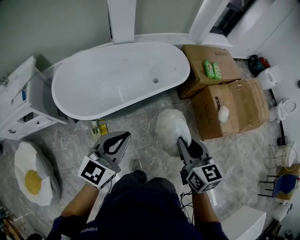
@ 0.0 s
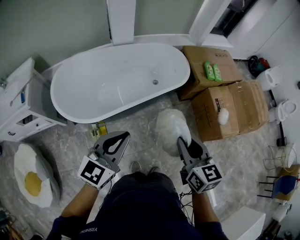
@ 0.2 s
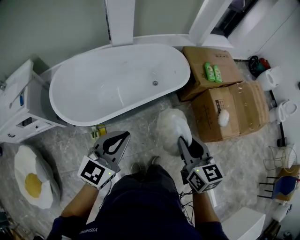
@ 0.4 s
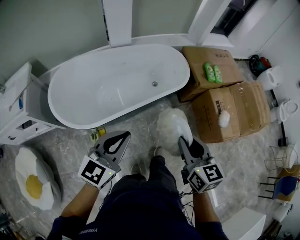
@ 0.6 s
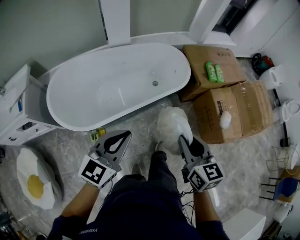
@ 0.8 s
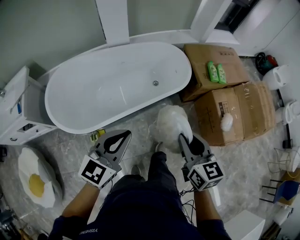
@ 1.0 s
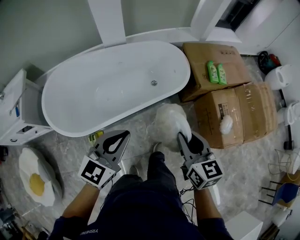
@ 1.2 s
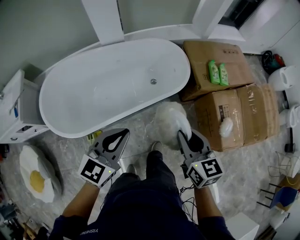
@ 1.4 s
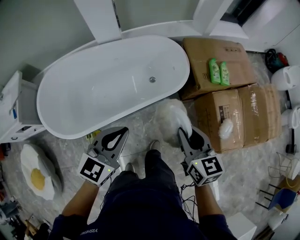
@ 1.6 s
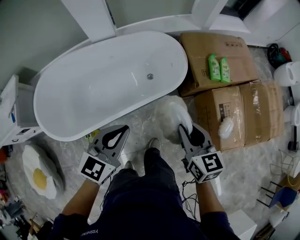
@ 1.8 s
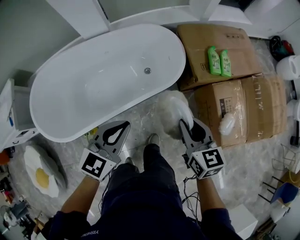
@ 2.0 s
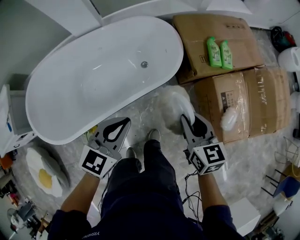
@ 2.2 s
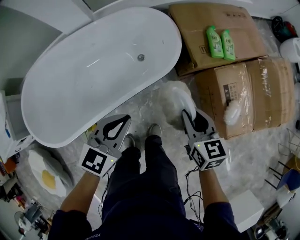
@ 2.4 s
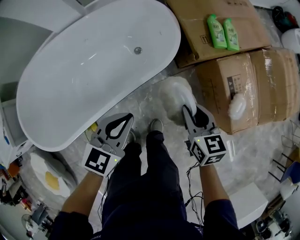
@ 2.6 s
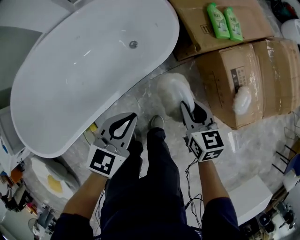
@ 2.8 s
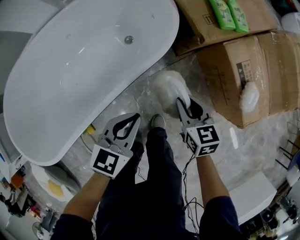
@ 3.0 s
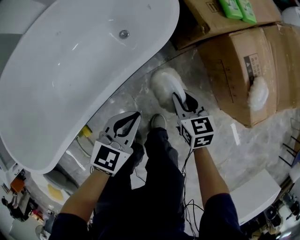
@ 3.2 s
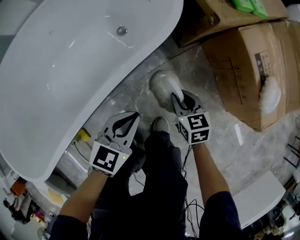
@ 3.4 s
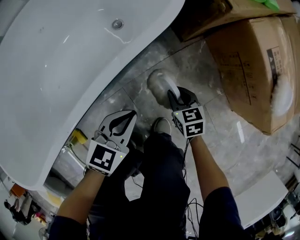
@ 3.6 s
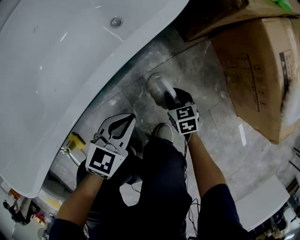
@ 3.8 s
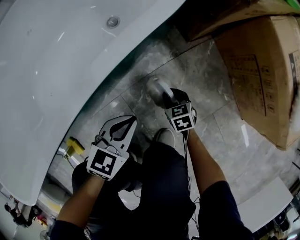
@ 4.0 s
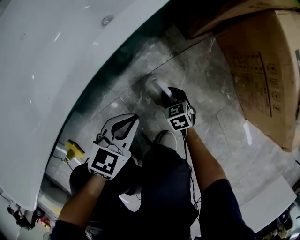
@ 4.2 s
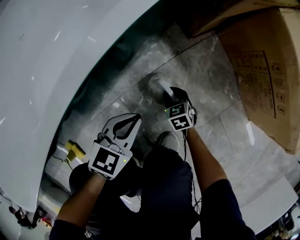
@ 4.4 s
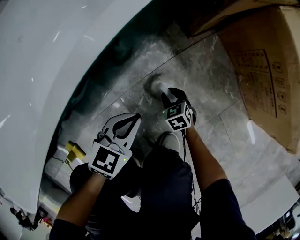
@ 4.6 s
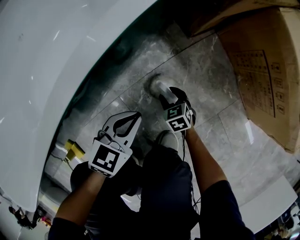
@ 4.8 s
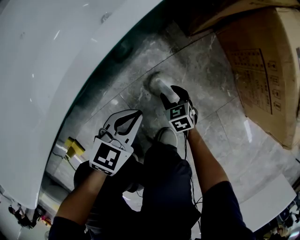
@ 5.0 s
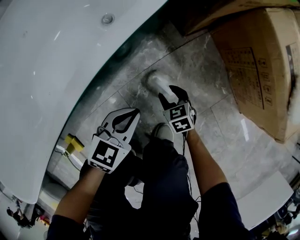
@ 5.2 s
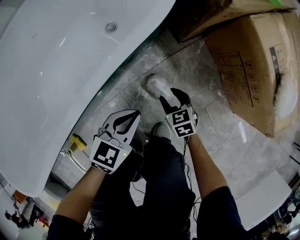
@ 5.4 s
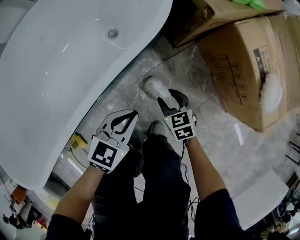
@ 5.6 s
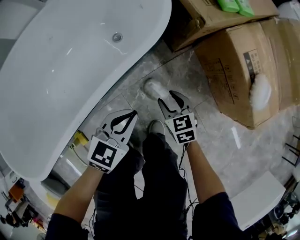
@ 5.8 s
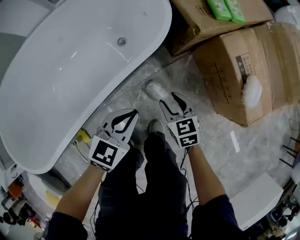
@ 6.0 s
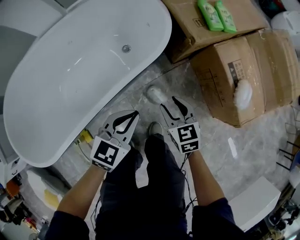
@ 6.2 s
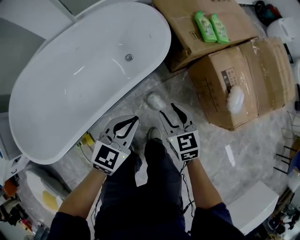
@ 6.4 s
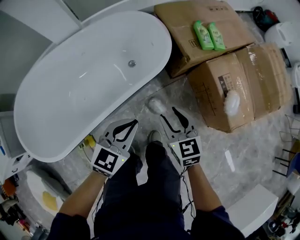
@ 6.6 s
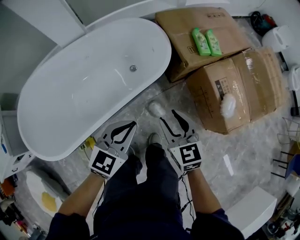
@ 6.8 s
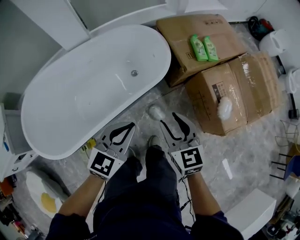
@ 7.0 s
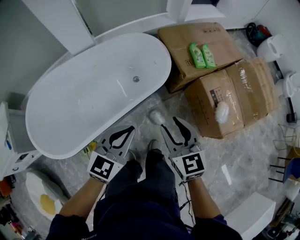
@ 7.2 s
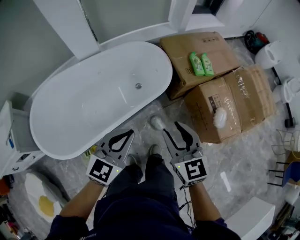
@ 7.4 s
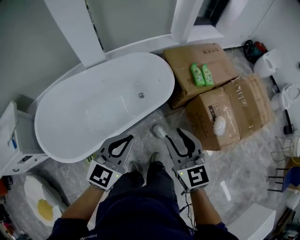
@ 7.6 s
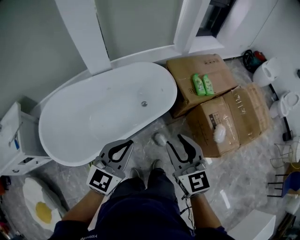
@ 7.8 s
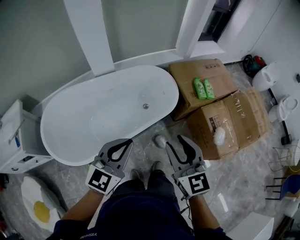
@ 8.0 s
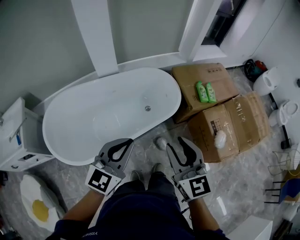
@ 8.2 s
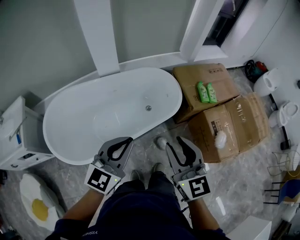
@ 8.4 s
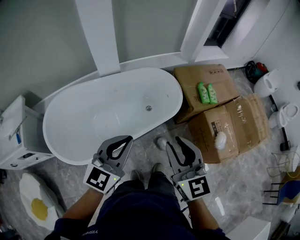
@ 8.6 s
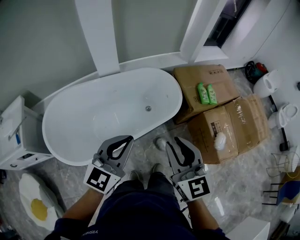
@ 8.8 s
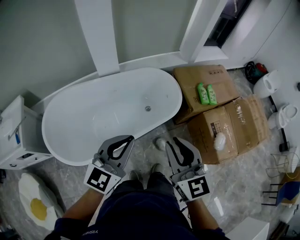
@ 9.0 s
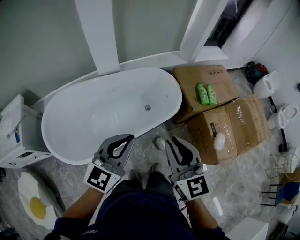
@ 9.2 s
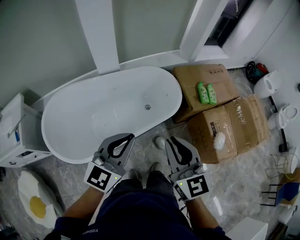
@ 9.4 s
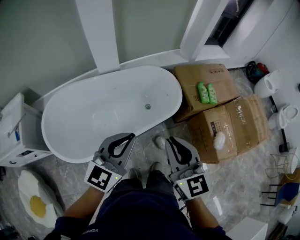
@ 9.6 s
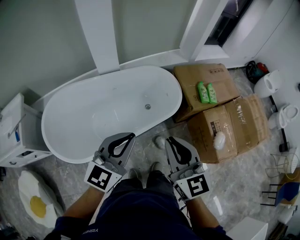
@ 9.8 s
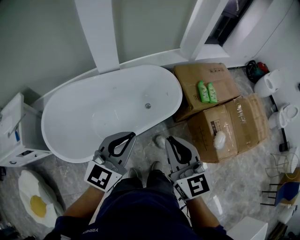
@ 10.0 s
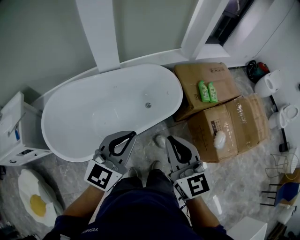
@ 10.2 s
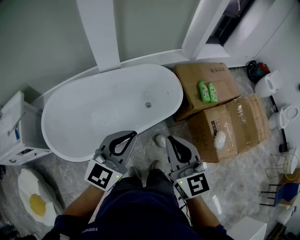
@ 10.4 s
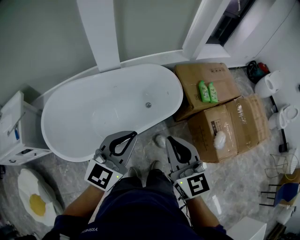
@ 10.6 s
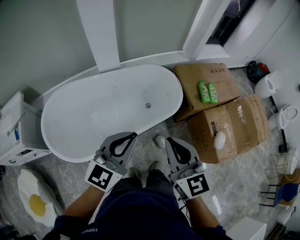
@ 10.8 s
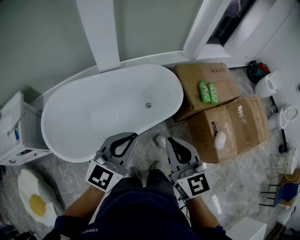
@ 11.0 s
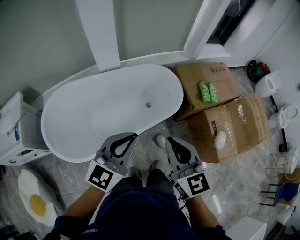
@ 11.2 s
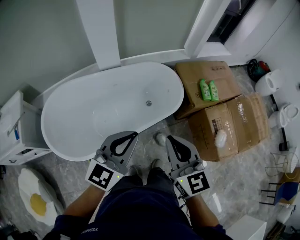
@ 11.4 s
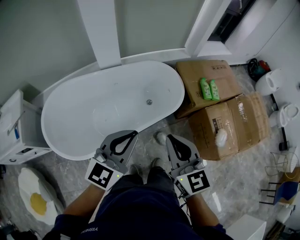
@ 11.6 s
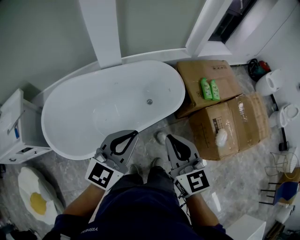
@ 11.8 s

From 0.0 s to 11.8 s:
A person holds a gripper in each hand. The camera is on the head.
From 0.0 s to 1.4 s: The left gripper goes roughly 25 cm forward and to the right. Meanwhile the right gripper moves forward, some 25 cm.
From 1.4 s to 3.0 s: The right gripper heads downward, covering approximately 35 cm; the left gripper moves downward, forward and to the right, approximately 35 cm, and changes its angle by some 20 degrees.
From 3.0 s to 4.4 s: The two grippers go about 40 cm downward.
From 4.4 s to 6.0 s: Both grippers travel together upward, roughly 35 cm. The right gripper opens up.
From 6.0 s to 7.4 s: The grippers both shift upward by roughly 40 cm. The right gripper swivels about 30 degrees. Meanwhile the left gripper changes its angle by about 20 degrees.
From 7.4 s to 8.8 s: Both grippers travel together upward and to the left, approximately 15 cm.
From 8.8 s to 10.4 s: The right gripper closes.
From 10.4 s to 11.8 s: The grippers move only a little.

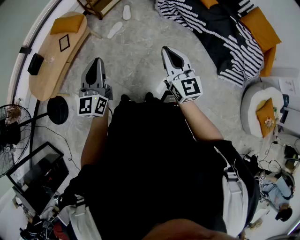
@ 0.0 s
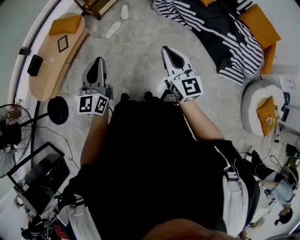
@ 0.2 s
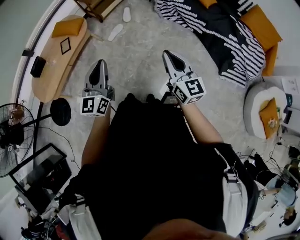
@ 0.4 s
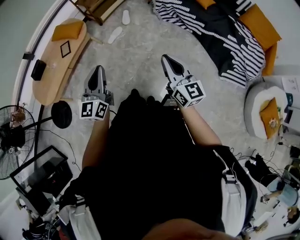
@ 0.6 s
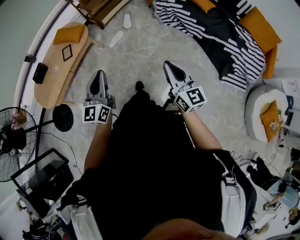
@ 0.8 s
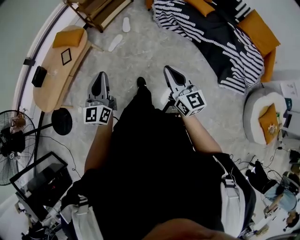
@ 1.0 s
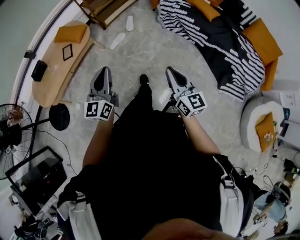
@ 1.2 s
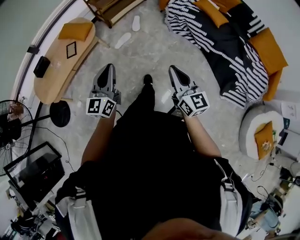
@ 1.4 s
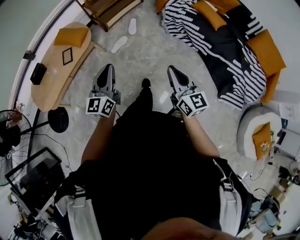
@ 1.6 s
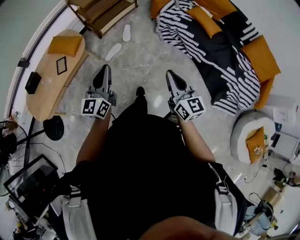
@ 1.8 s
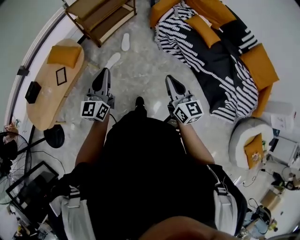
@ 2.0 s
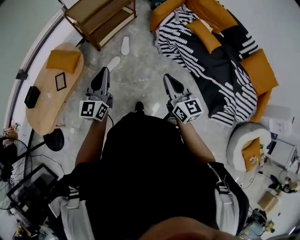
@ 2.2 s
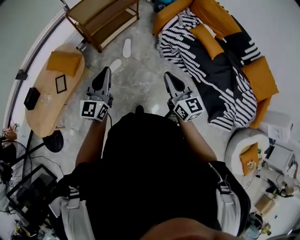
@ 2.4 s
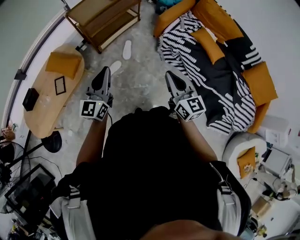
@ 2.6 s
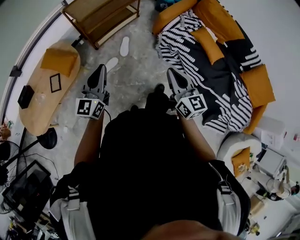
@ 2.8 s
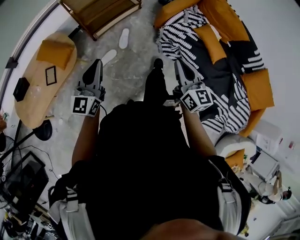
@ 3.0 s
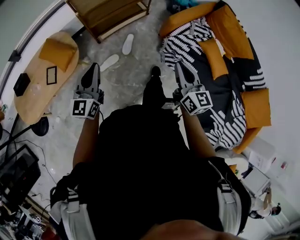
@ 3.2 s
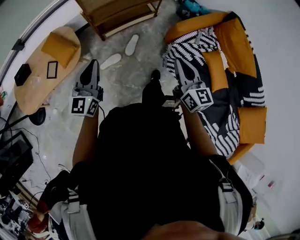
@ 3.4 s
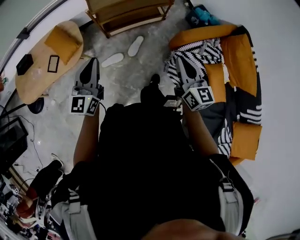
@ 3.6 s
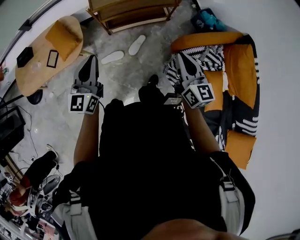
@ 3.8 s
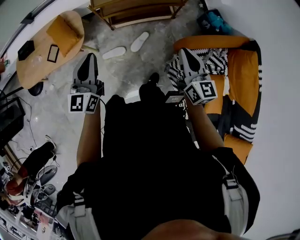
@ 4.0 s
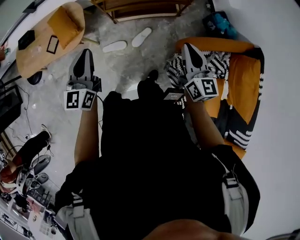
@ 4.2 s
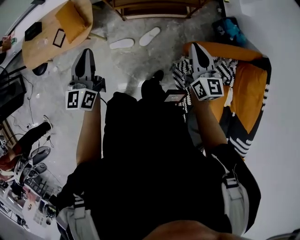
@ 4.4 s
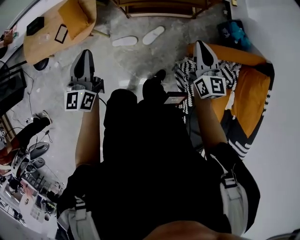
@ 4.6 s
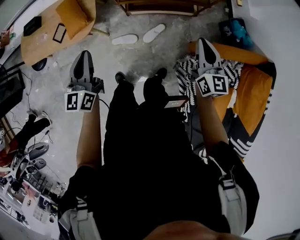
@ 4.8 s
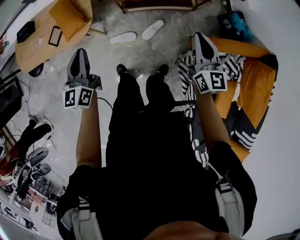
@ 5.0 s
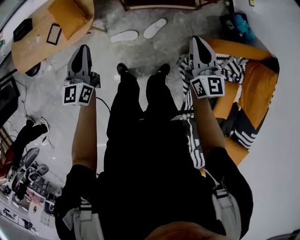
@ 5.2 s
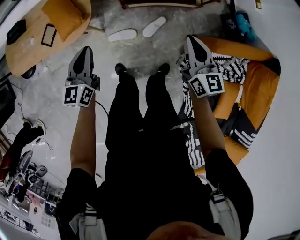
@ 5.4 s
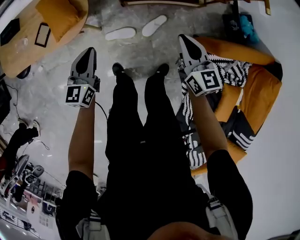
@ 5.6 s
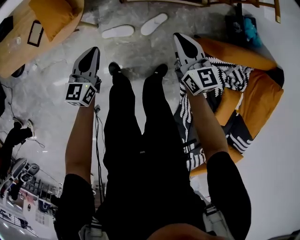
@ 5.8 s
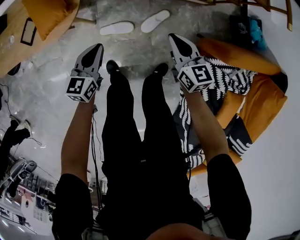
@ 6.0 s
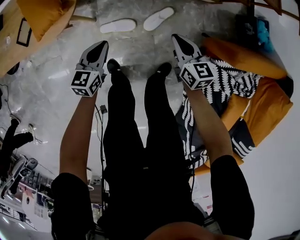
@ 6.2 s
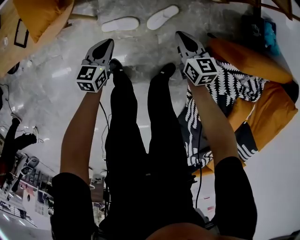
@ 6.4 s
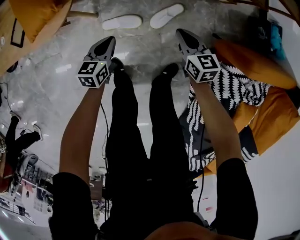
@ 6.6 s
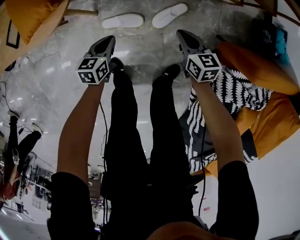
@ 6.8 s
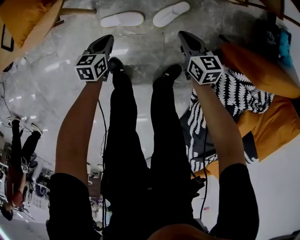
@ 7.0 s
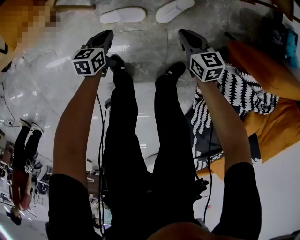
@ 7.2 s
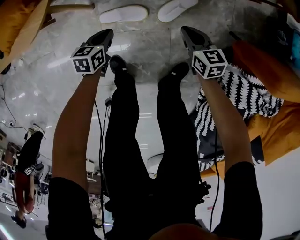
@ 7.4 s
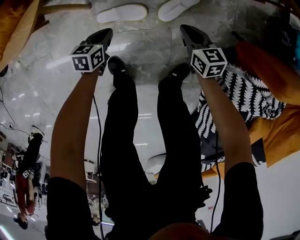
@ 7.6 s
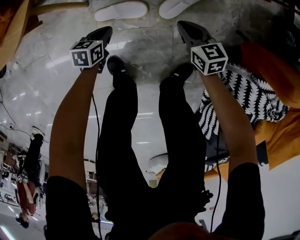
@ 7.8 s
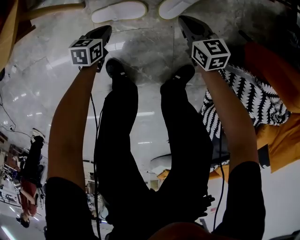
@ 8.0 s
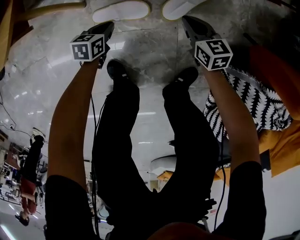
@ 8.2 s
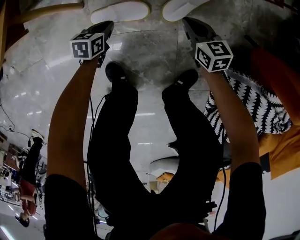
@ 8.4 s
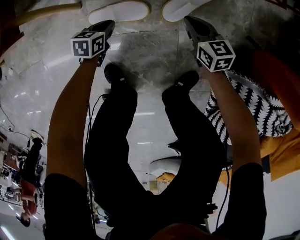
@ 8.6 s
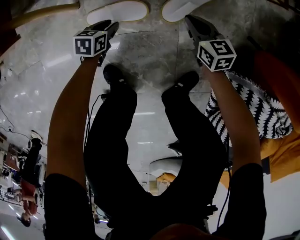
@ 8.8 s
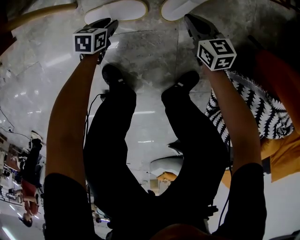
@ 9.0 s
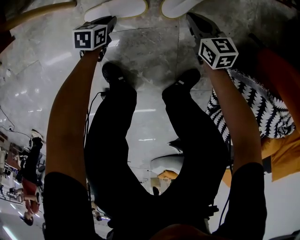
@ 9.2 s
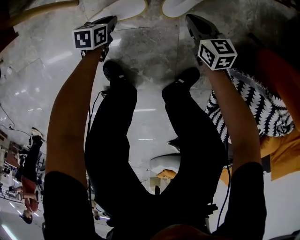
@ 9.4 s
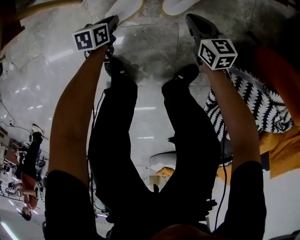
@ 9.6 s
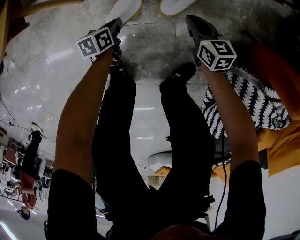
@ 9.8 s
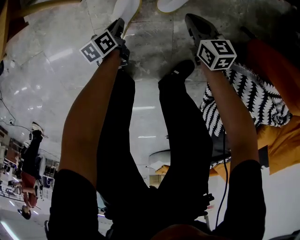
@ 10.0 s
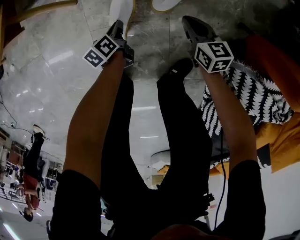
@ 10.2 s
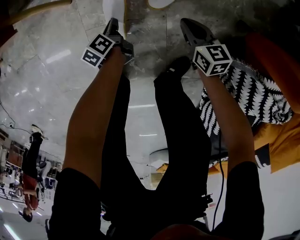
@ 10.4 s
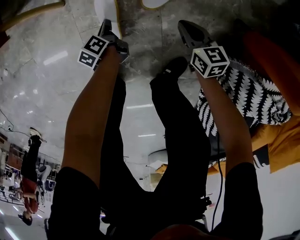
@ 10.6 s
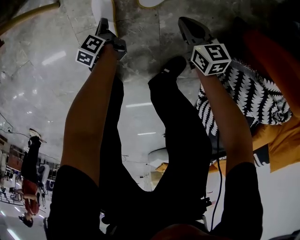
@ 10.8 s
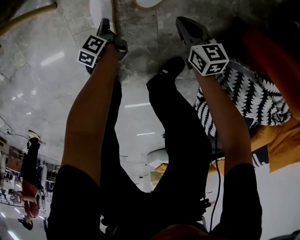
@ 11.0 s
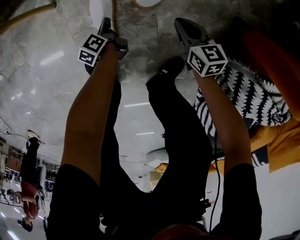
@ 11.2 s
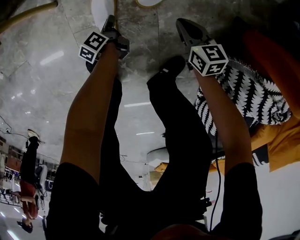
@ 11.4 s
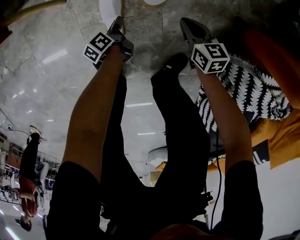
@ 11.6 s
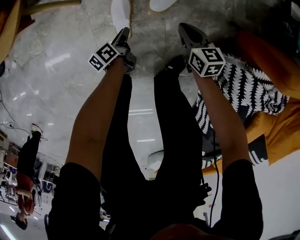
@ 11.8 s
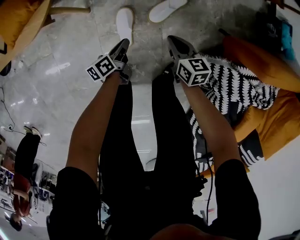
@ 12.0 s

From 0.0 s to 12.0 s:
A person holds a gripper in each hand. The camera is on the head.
From 0.0 s to 1.6 s: The left gripper moves forward, some 15 cm; the right gripper heads forward and to the right, covering some 10 cm.
From 1.6 s to 3.0 s: Both grippers move forward, approximately 35 cm.
From 3.0 s to 4.4 s: The right gripper moves about 40 cm, and turns by approximately 30 degrees. The left gripper moves approximately 20 cm, and rotates approximately 50 degrees.
From 4.4 s to 6.0 s: The right gripper shifts roughly 35 cm downward and to the left, and rotates some 20 degrees. The left gripper travels downward by roughly 35 cm, and changes its angle by some 30 degrees.
From 6.0 s to 7.6 s: The two grippers go some 35 cm downward. The left gripper swivels approximately 30 degrees.
From 7.6 s to 9.0 s: Both grippers travel together downward, approximately 15 cm. The left gripper opens up.
From 9.0 s to 10.4 s: The right gripper changes place by roughly 10 cm; the left gripper goes approximately 5 cm upward, rotates around the line of its fingers by about 50 degrees, counterclockwise from behind, and closes its fingers.
From 10.4 s to 12.0 s: Both grippers travel together upward, roughly 15 cm. The left gripper rotates about 20 degrees, and opens, then closes again.
